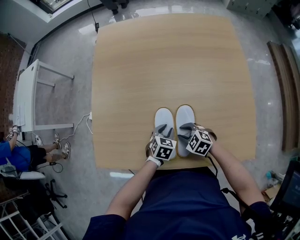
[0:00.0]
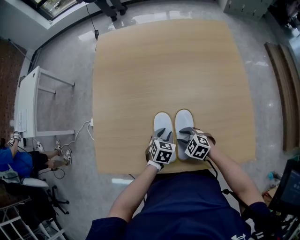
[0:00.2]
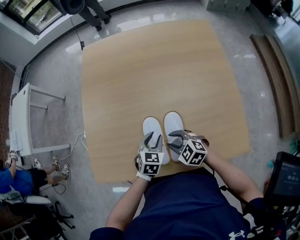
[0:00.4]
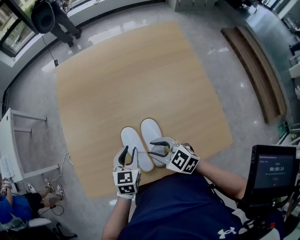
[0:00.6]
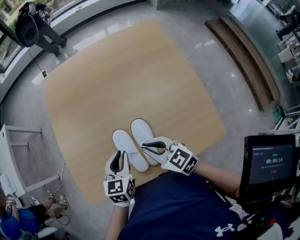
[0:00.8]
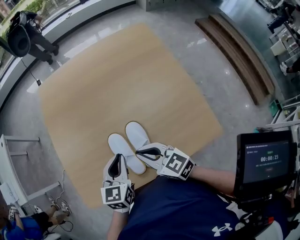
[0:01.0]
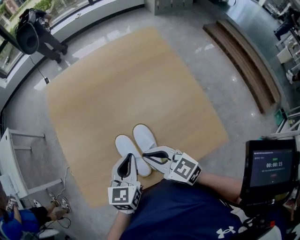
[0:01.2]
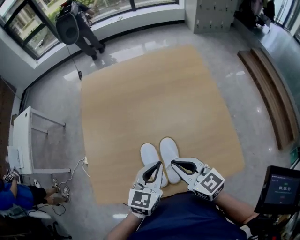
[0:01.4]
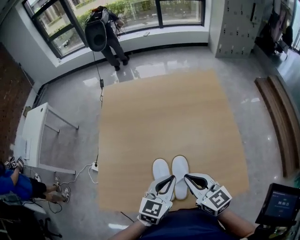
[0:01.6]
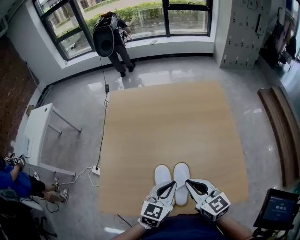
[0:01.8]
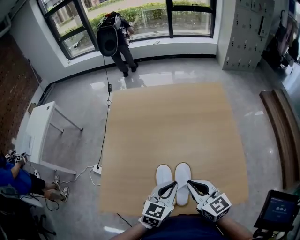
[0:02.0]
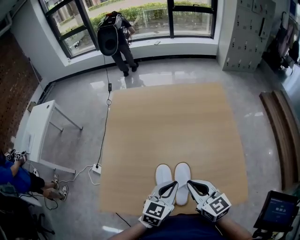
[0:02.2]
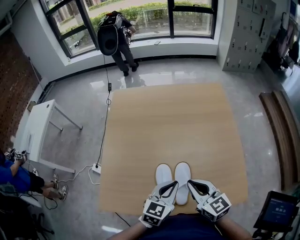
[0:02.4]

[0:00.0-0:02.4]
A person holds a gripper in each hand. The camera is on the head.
0:00.0 to 0:01.2: The two grippers go some 25 cm upward. The right gripper tilts its fingers about 40 degrees upward, and closes. Meanwhile the left gripper points its fingers some 30 degrees further upward, and closes its fingers.
0:01.2 to 0:02.4: The grippers stay close to where they were, moving slightly.

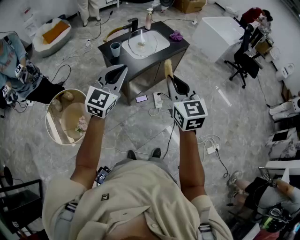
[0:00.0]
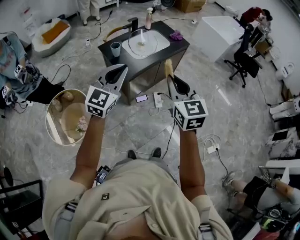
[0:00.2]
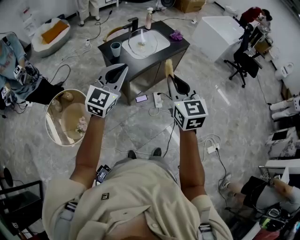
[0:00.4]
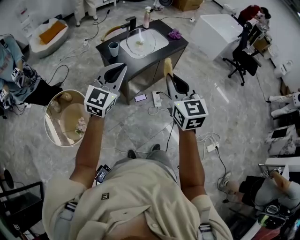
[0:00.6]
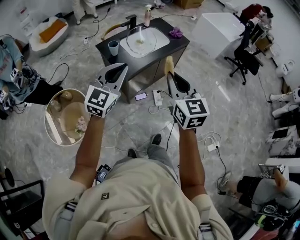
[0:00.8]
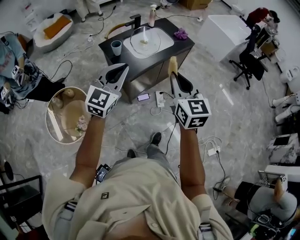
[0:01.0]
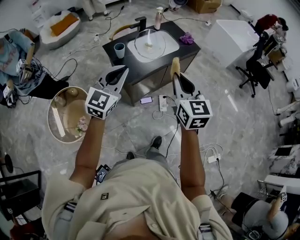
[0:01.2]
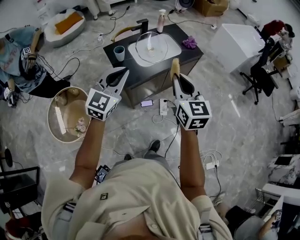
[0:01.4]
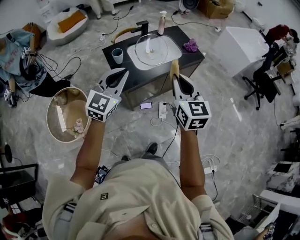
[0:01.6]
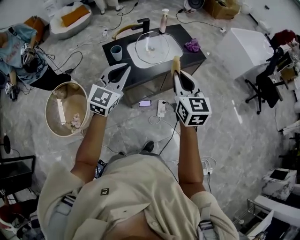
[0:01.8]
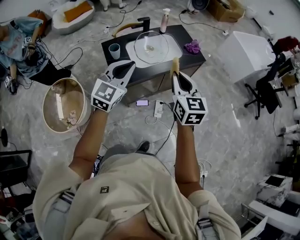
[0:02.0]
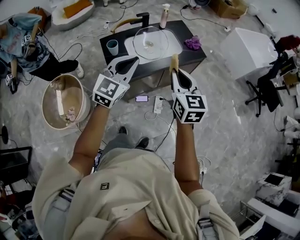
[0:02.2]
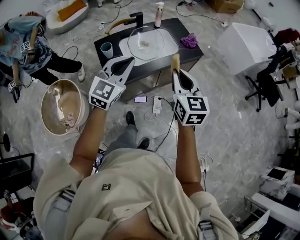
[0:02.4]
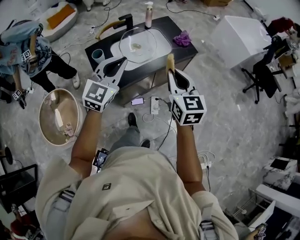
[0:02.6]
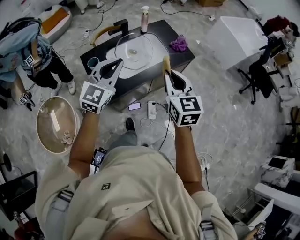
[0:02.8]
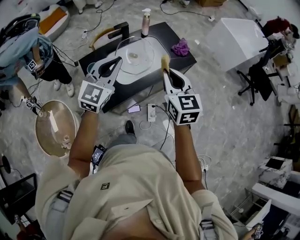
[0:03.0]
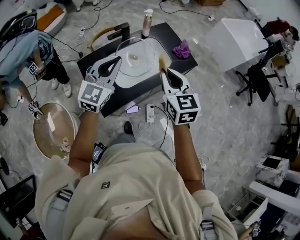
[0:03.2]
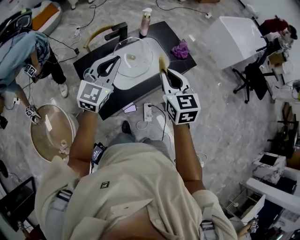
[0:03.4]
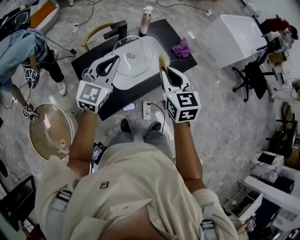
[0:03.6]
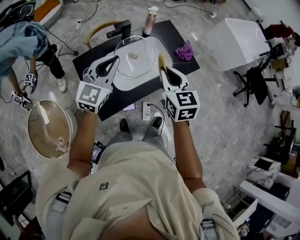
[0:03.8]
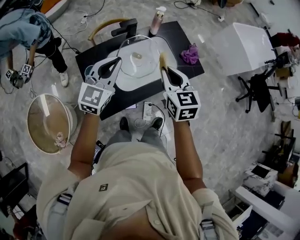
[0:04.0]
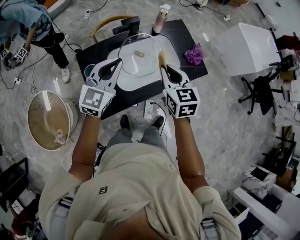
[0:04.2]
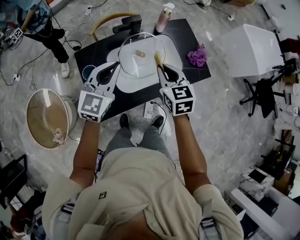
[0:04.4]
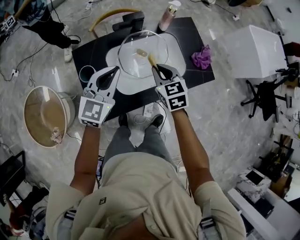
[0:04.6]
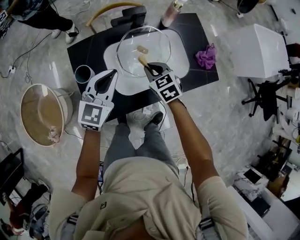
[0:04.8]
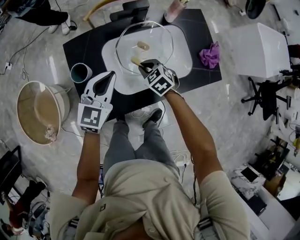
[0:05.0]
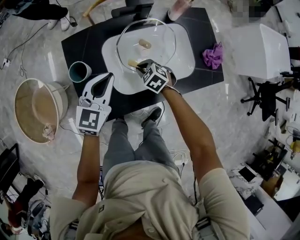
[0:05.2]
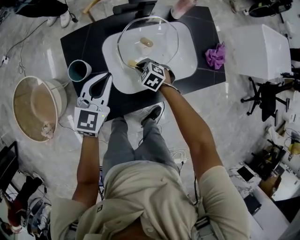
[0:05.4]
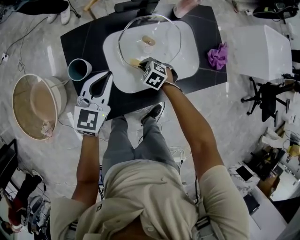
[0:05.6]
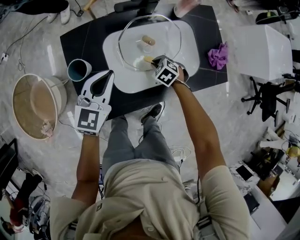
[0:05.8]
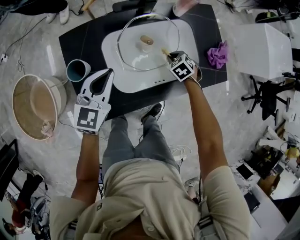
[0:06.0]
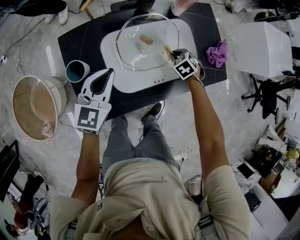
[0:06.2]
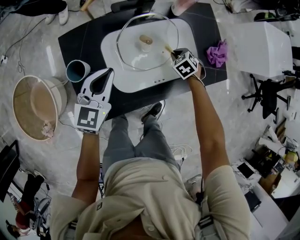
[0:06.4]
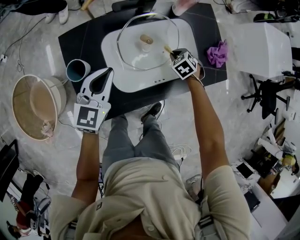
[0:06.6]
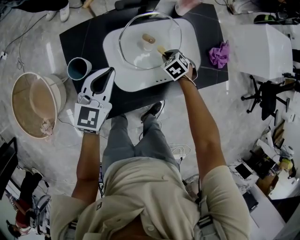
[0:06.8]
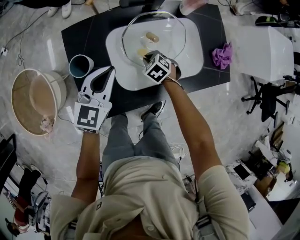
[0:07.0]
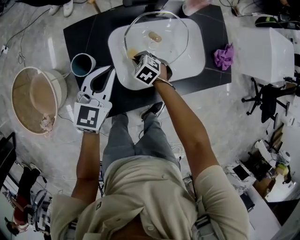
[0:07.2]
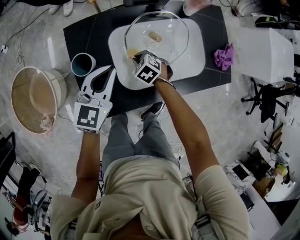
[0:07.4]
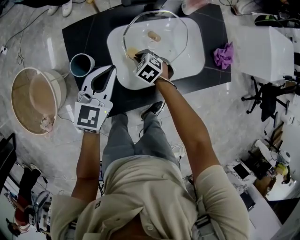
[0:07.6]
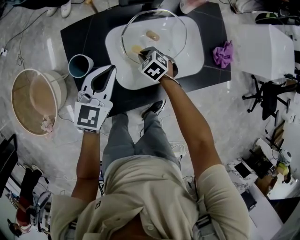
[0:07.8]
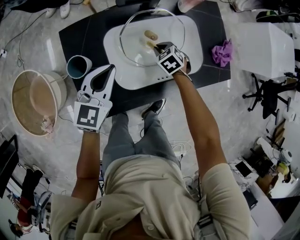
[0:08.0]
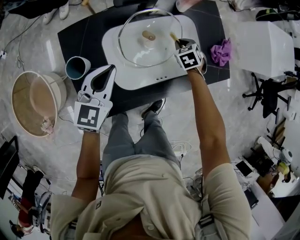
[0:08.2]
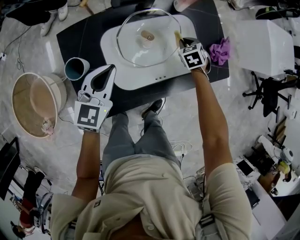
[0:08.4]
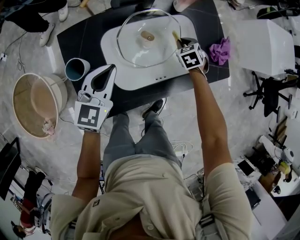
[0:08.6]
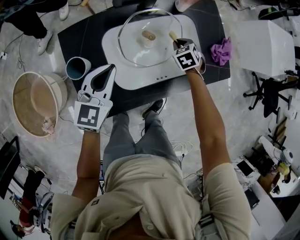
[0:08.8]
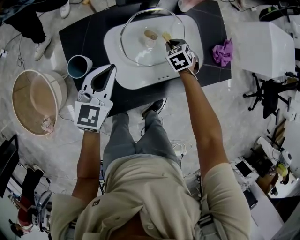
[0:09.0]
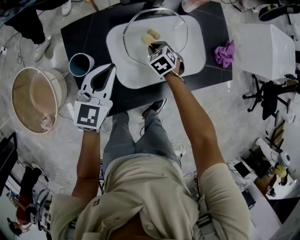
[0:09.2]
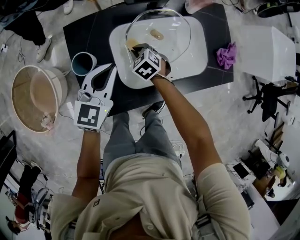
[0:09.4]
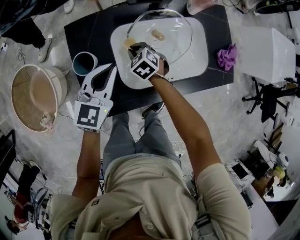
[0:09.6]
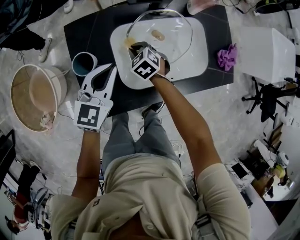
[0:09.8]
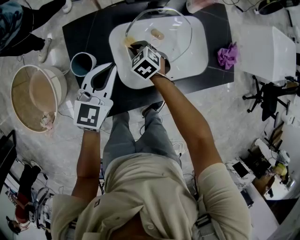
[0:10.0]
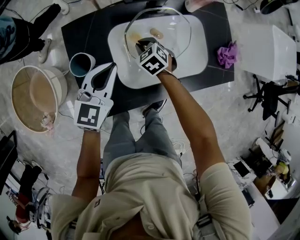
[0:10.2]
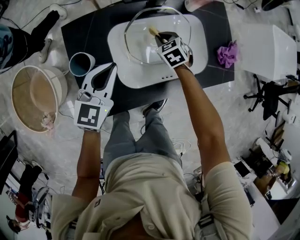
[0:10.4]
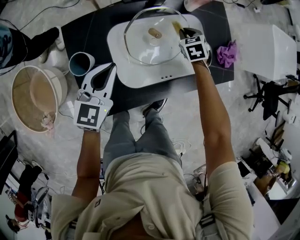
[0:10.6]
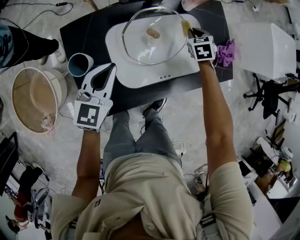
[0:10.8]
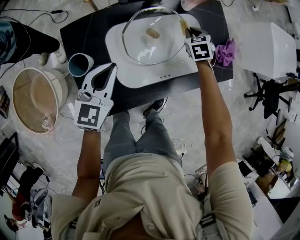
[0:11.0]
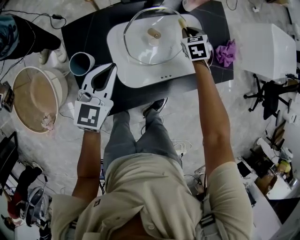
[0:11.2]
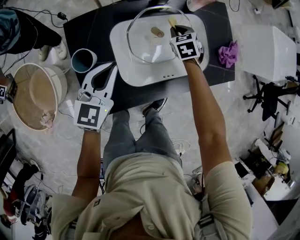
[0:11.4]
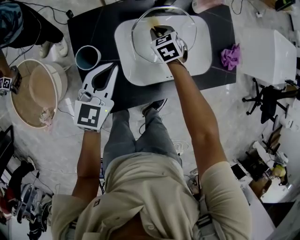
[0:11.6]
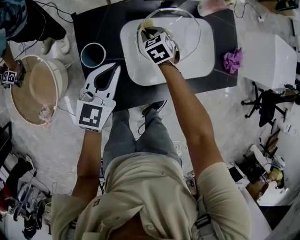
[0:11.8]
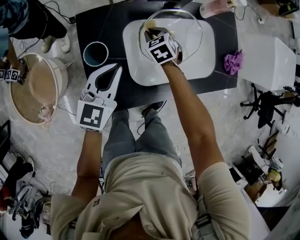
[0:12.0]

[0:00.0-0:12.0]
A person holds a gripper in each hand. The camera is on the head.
0:00.0 to 0:01.6: The grippers both shift forward by about 20 cm.
0:01.6 to 0:03.0: The two grippers go about 25 cm forward.
0:03.0 to 0:04.4: The grippers both shift forward, downward and to the left by approximately 20 cm.
0:04.4 to 0:06.0: The left gripper goes roughly 15 cm downward. Meanwhile the right gripper heads downward, covering some 35 cm, and angles its fingers downward, by roughly 40 degrees.
0:06.0 to 0:07.6: The right gripper moves to the left, about 20 cm.
0:07.6 to 0:09.0: The right gripper moves some 20 cm, and swivels roughly 20 degrees.
0:09.0 to 0:10.4: The right gripper shifts roughly 5 cm to the left.
0:10.4 to 0:12.0: The right gripper travels to the left by some 10 cm.

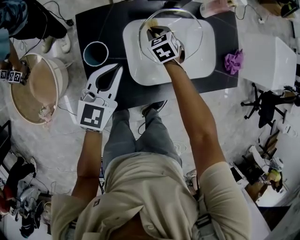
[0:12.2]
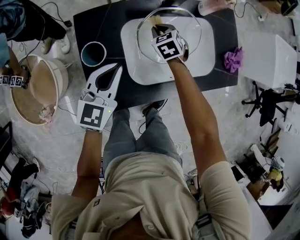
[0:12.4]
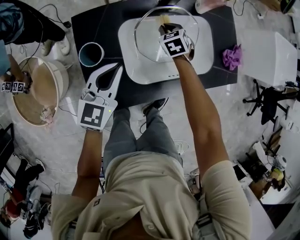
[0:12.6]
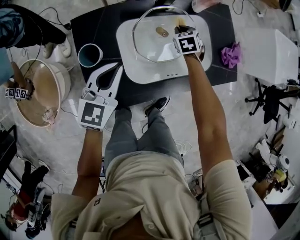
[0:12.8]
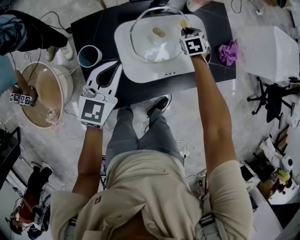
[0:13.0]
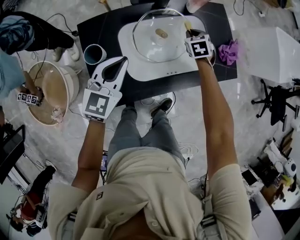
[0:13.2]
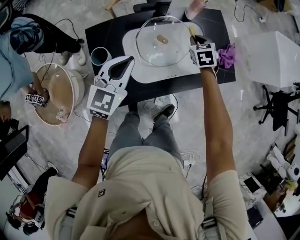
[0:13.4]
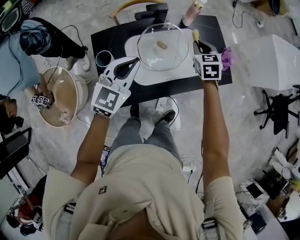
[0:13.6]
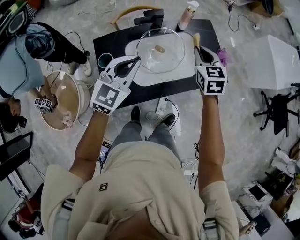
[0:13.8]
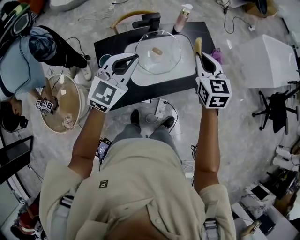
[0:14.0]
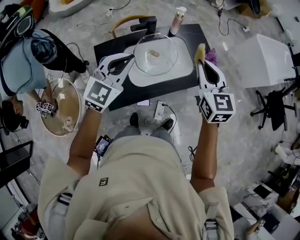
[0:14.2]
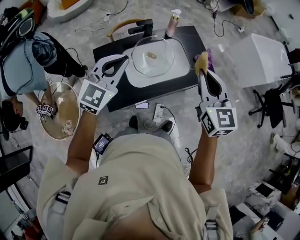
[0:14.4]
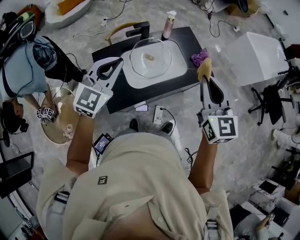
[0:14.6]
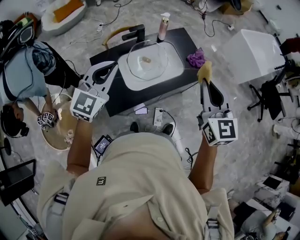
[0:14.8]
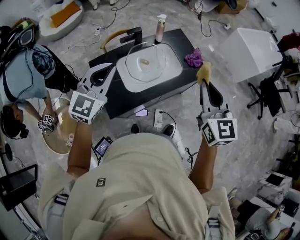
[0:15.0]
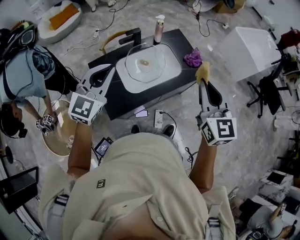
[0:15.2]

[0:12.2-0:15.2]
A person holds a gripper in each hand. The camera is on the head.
0:12.2 to 0:13.8: The left gripper heads upward and to the right, covering approximately 20 cm, and rotates some 30 degrees, while the right gripper shifts roughly 40 cm upward and to the right, and swivels about 30 degrees.
0:13.8 to 0:15.2: The left gripper shifts about 15 cm upward and backward, while the right gripper heads backward and upward, covering approximately 35 cm, and swivels some 30 degrees.

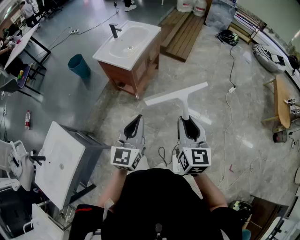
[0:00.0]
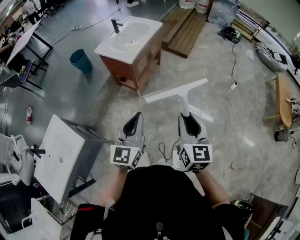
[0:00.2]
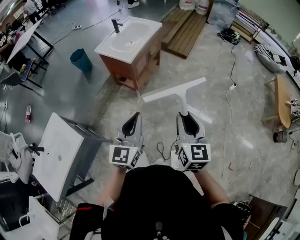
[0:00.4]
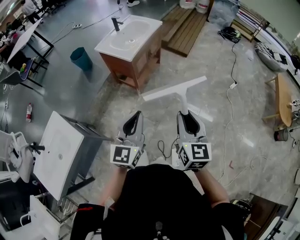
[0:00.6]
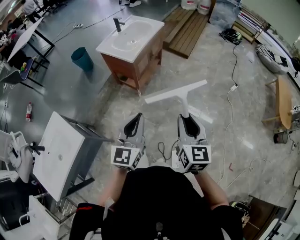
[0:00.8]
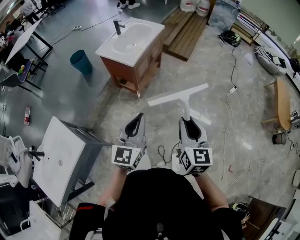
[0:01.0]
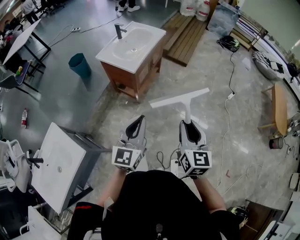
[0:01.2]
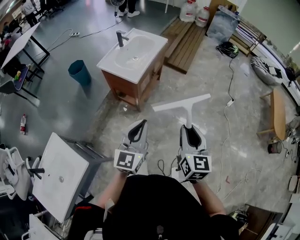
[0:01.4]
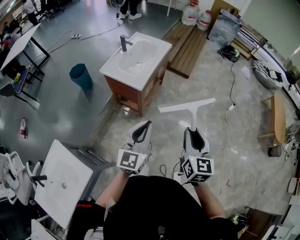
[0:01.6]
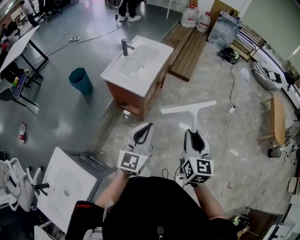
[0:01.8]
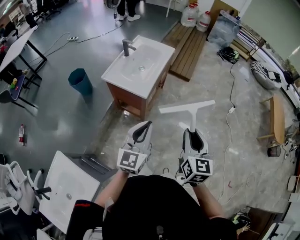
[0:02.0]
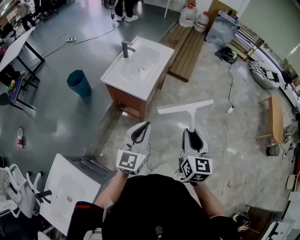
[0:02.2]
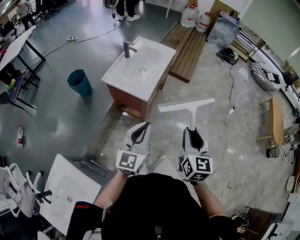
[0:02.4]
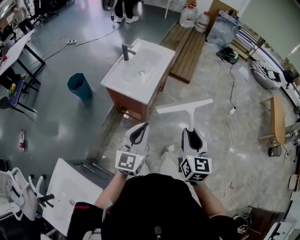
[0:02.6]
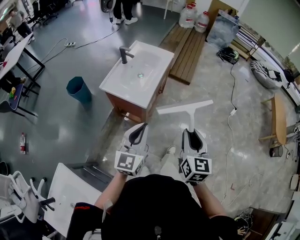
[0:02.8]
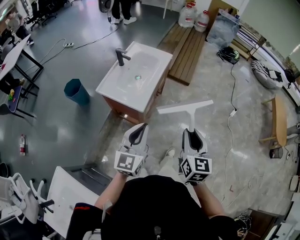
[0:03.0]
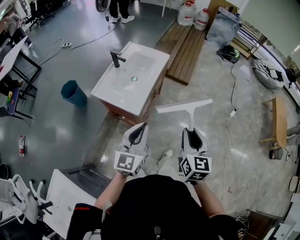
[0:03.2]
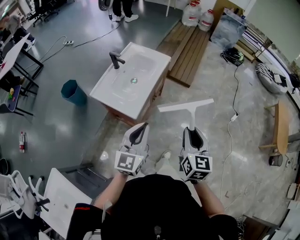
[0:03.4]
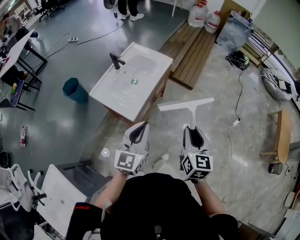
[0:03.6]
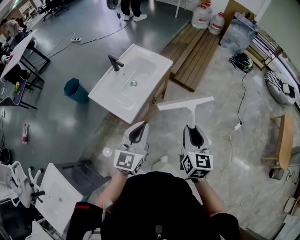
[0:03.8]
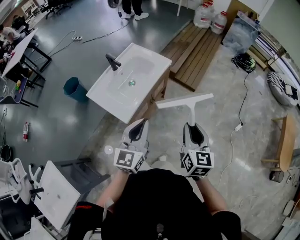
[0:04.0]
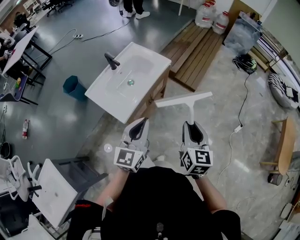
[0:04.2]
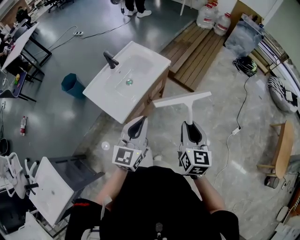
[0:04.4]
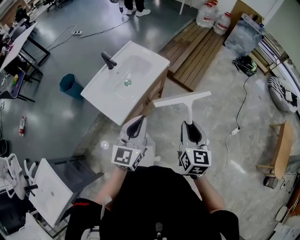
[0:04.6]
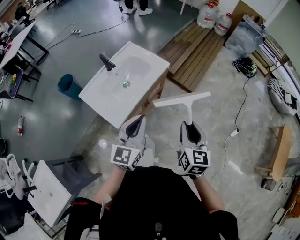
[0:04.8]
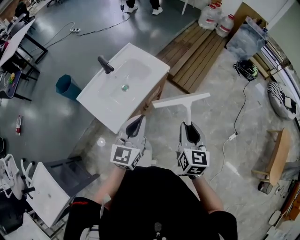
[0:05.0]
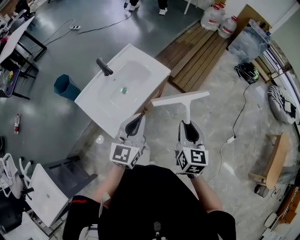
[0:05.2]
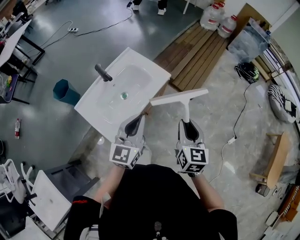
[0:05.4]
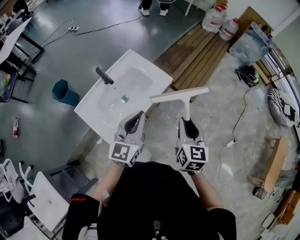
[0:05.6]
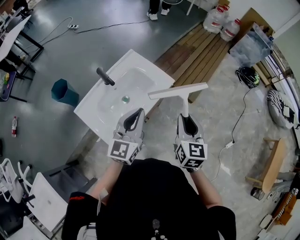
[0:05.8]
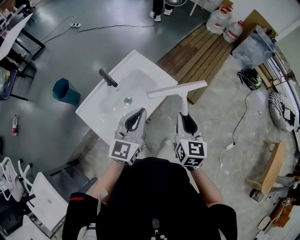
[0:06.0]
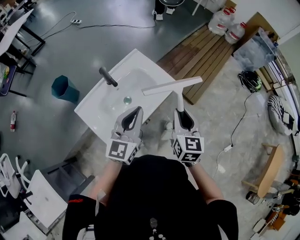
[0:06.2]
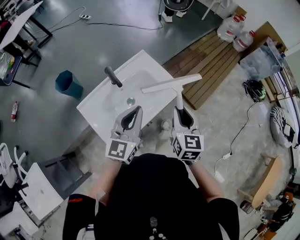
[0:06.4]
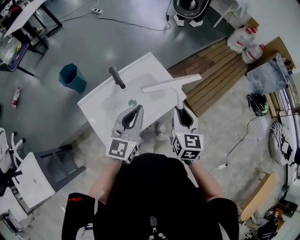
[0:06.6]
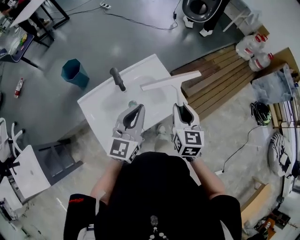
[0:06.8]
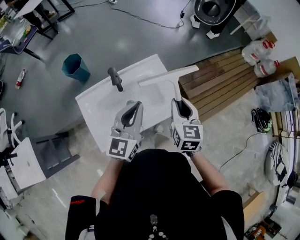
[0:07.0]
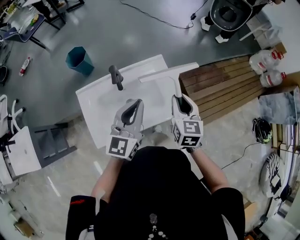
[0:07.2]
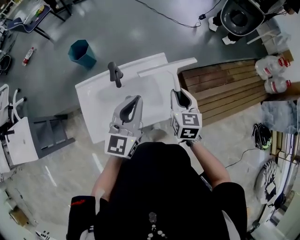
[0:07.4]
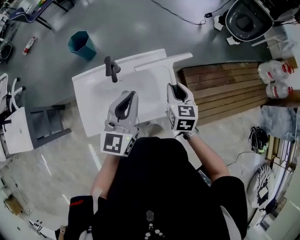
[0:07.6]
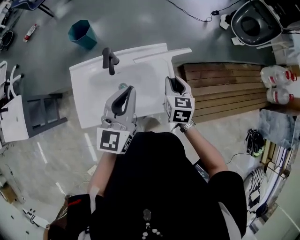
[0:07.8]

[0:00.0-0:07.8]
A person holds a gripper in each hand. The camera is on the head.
0:00.0 to 0:01.6: The two grippers go roughly 15 cm forward and to the left.
0:01.6 to 0:03.2: The two grippers go some 20 cm forward.
0:03.2 to 0:04.6: The two grippers go approximately 20 cm forward and to the right.
0:04.6 to 0:06.2: Both grippers move forward, roughly 25 cm.
0:06.2 to 0:07.8: The right gripper shifts by about 35 cm, and swivels some 40 degrees. Meanwhile the left gripper changes place by some 20 cm, and turns by approximately 40 degrees.
